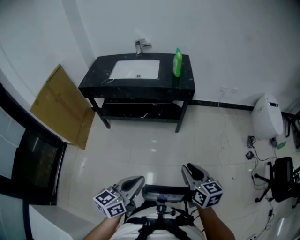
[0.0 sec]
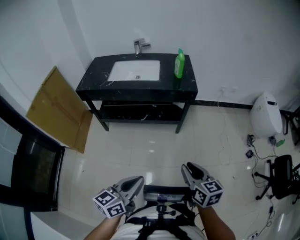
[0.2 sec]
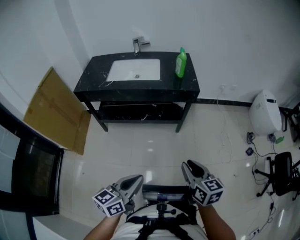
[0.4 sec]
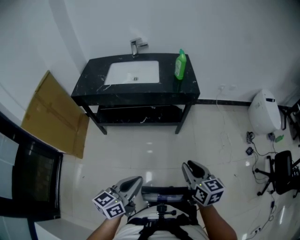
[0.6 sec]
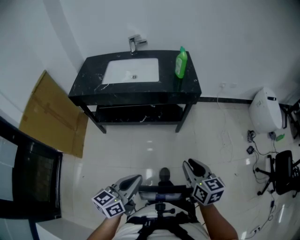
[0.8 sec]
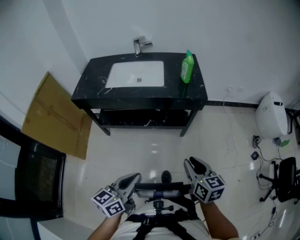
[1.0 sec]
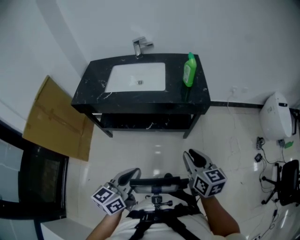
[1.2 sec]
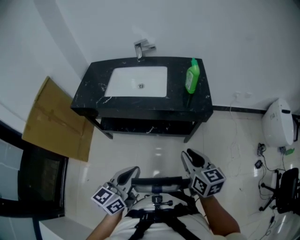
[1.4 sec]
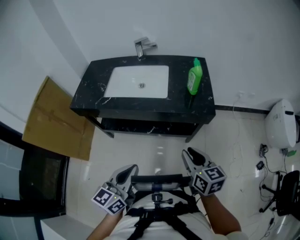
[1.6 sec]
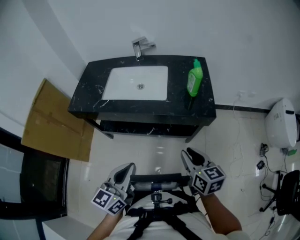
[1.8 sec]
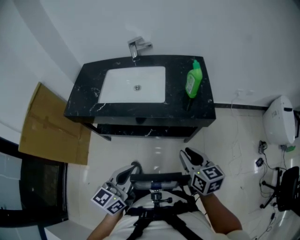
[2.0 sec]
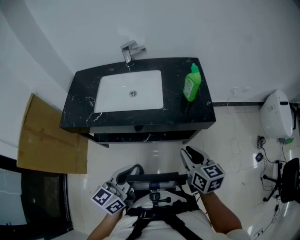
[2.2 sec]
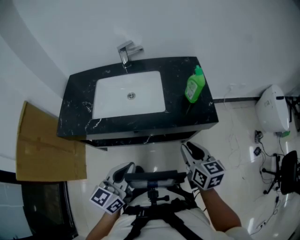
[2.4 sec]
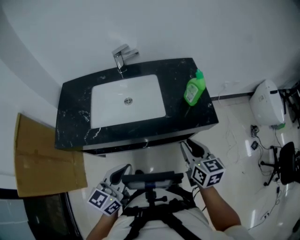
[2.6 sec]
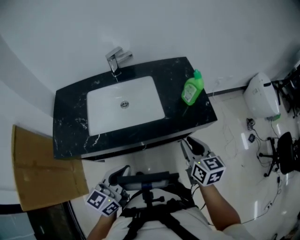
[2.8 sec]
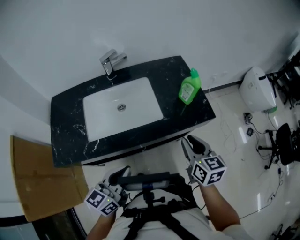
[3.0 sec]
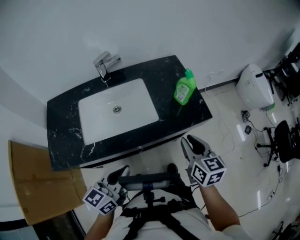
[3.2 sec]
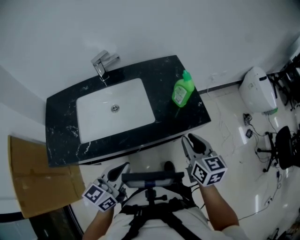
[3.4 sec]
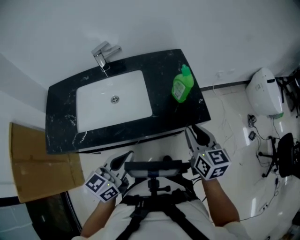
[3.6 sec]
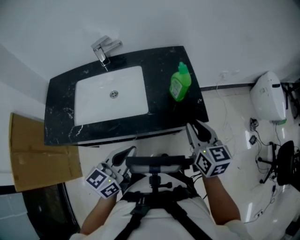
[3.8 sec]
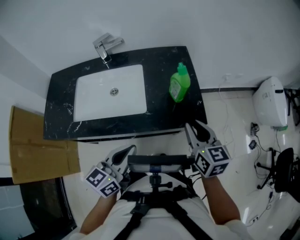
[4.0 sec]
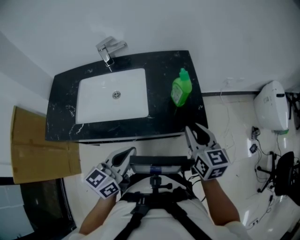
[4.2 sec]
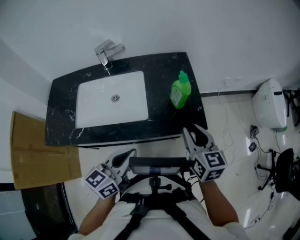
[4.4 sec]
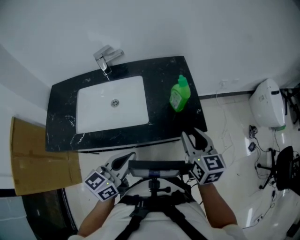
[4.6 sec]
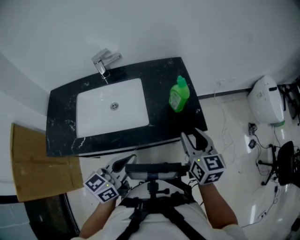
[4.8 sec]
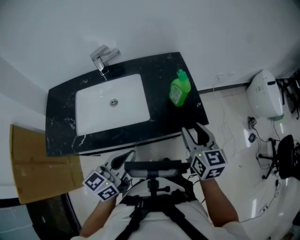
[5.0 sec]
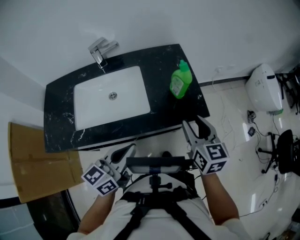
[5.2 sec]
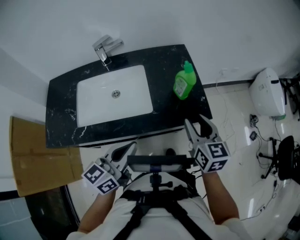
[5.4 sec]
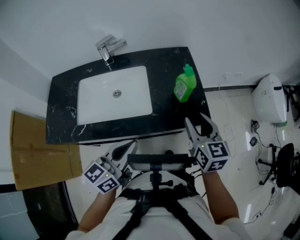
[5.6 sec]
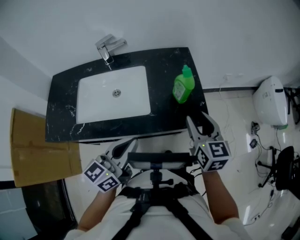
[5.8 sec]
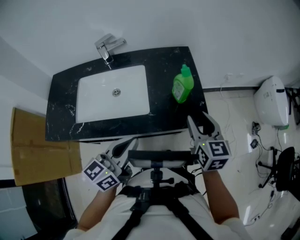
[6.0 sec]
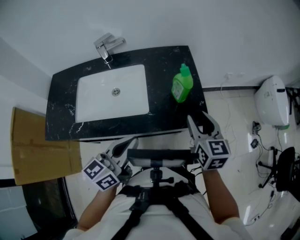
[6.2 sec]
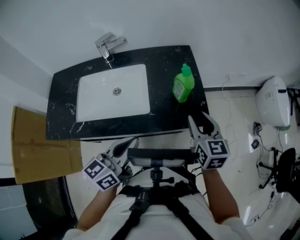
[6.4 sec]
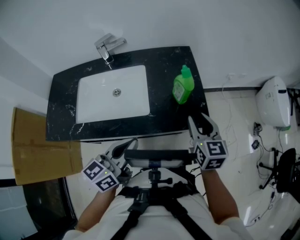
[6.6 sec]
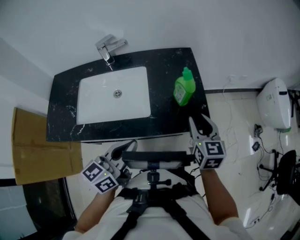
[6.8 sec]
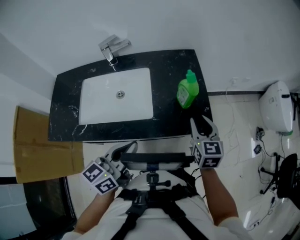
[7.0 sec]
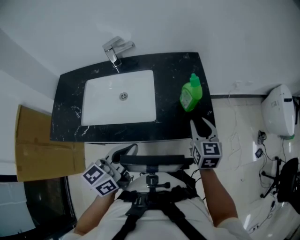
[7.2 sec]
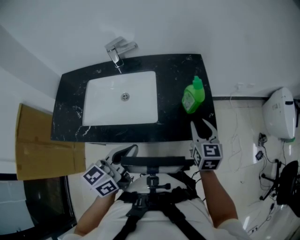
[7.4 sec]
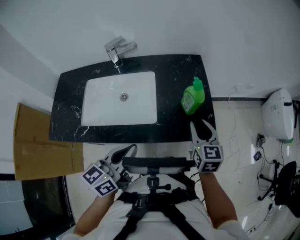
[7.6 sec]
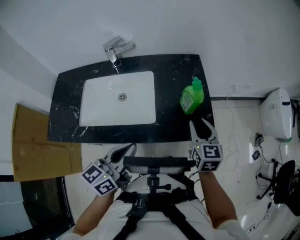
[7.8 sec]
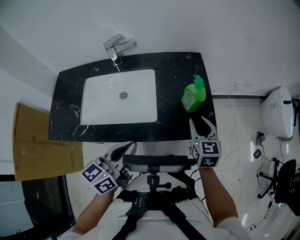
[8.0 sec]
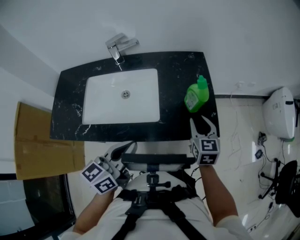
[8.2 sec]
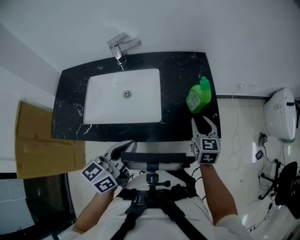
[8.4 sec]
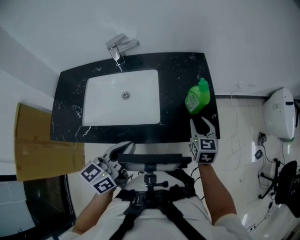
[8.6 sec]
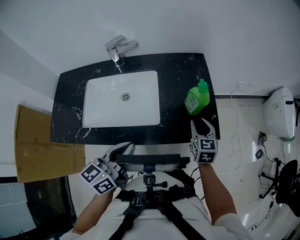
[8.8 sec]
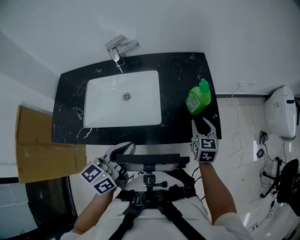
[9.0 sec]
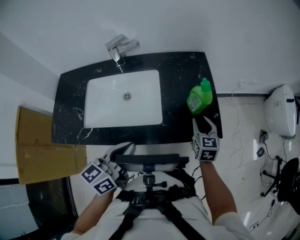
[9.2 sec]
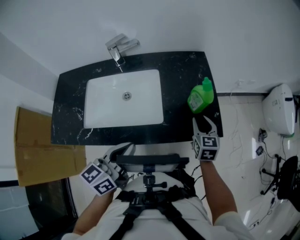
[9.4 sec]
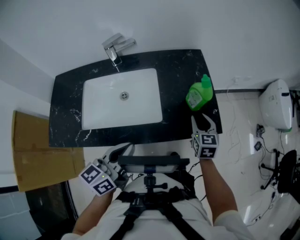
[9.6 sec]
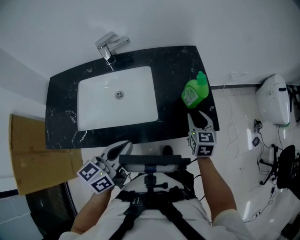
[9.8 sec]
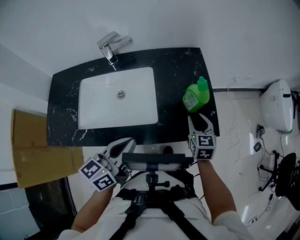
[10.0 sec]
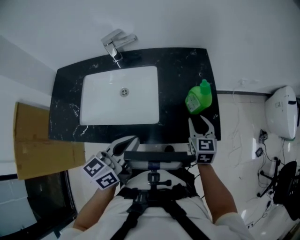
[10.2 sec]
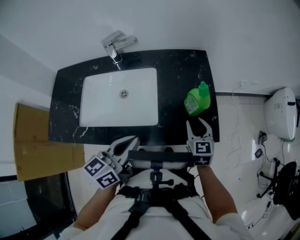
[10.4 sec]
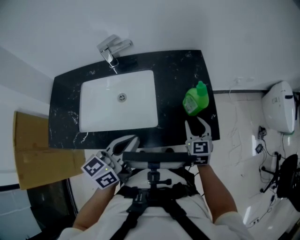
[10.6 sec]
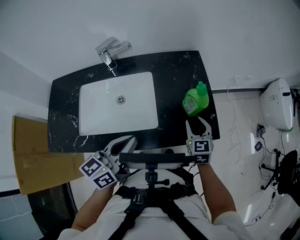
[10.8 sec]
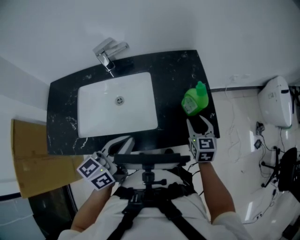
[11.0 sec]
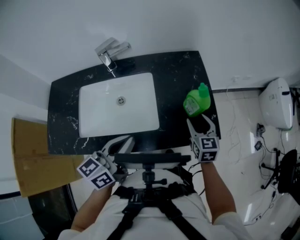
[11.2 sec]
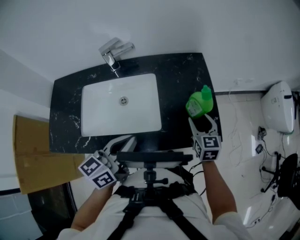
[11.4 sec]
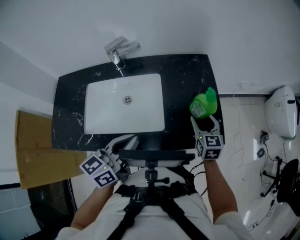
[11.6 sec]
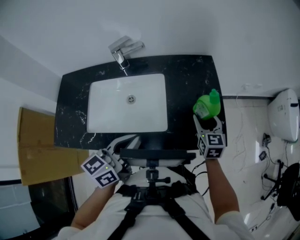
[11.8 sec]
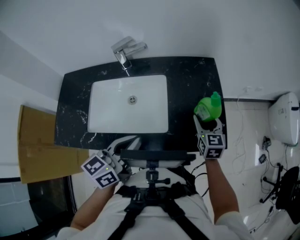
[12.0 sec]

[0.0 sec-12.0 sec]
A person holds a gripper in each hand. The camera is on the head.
0.0 sec to 1.6 sec: The two grippers go some 30 cm forward.
1.6 sec to 3.0 sec: The left gripper shifts by approximately 25 cm, and rotates approximately 30 degrees; the right gripper moves roughly 20 cm, and changes its angle by some 30 degrees.
3.0 sec to 4.4 sec: The right gripper moves forward and to the right, about 15 cm, while the left gripper moves to the right and forward, roughly 15 cm.
4.4 sec to 6.0 sec: The grippers move only a little.
6.0 sec to 7.6 sec: The right gripper travels downward by some 5 cm.
7.6 sec to 9.0 sec: The right gripper moves downward, about 10 cm.
9.0 sec to 10.4 sec: The grippers stay close to where they were, moving slightly.
10.4 sec to 12.0 sec: The right gripper is displaced forward by roughly 5 cm, and opens its fingers.

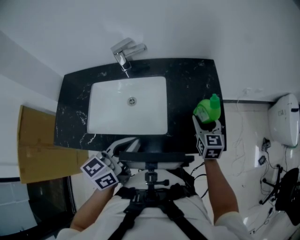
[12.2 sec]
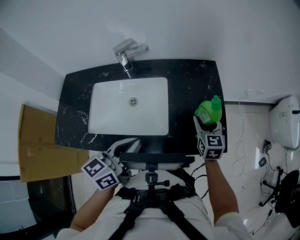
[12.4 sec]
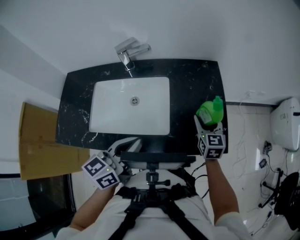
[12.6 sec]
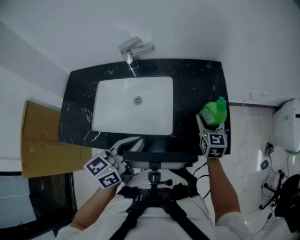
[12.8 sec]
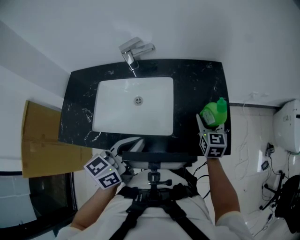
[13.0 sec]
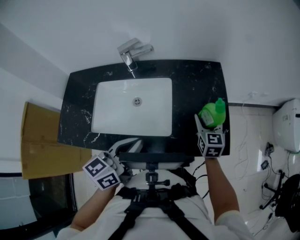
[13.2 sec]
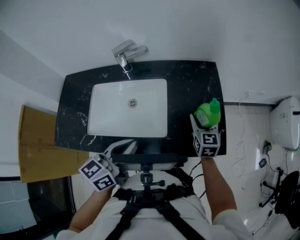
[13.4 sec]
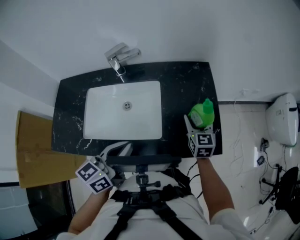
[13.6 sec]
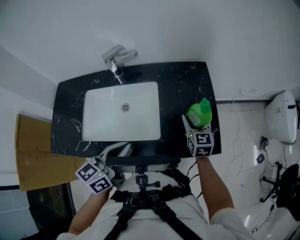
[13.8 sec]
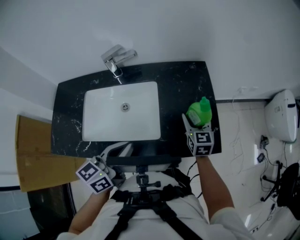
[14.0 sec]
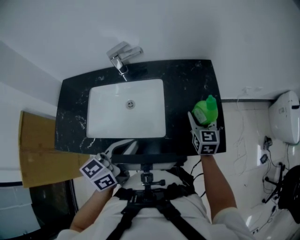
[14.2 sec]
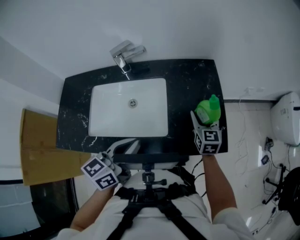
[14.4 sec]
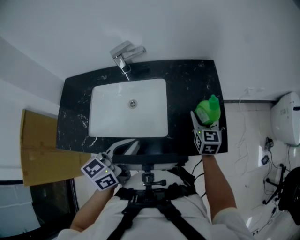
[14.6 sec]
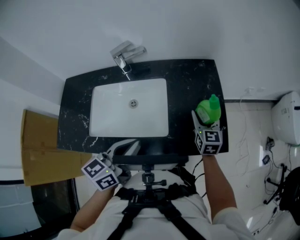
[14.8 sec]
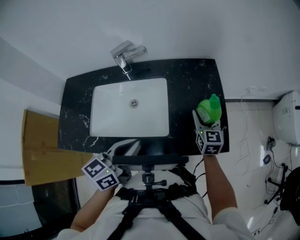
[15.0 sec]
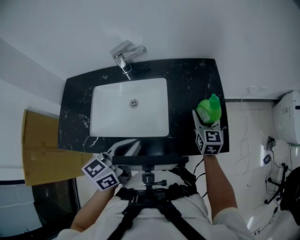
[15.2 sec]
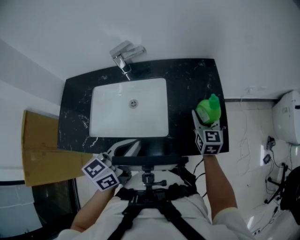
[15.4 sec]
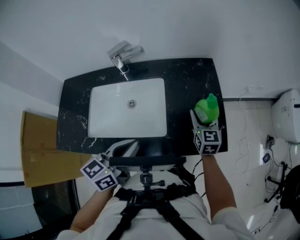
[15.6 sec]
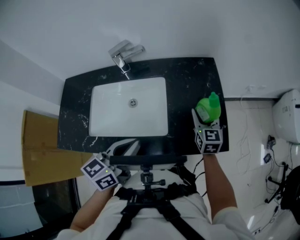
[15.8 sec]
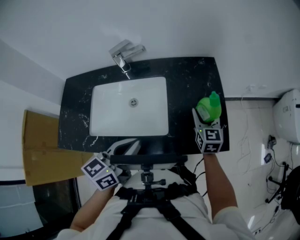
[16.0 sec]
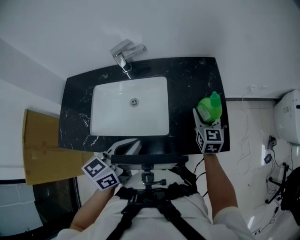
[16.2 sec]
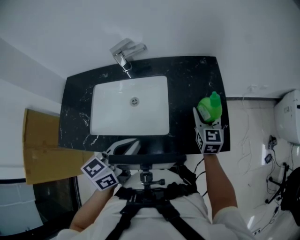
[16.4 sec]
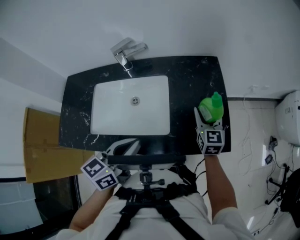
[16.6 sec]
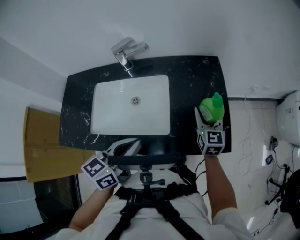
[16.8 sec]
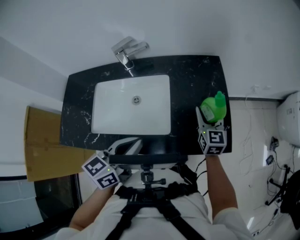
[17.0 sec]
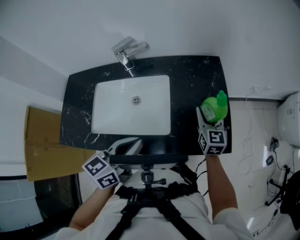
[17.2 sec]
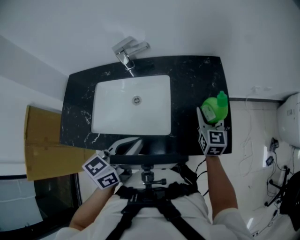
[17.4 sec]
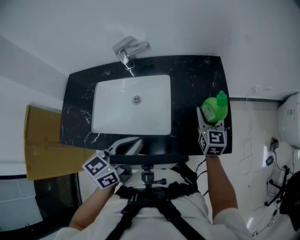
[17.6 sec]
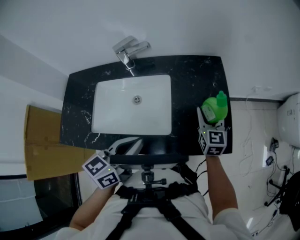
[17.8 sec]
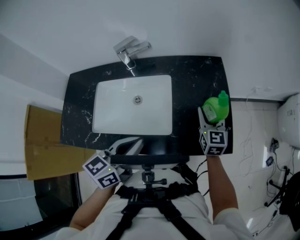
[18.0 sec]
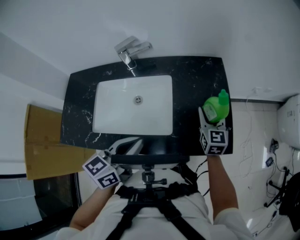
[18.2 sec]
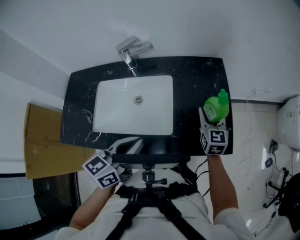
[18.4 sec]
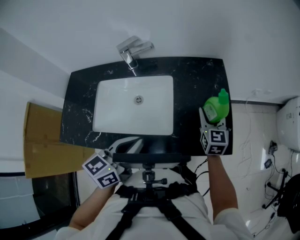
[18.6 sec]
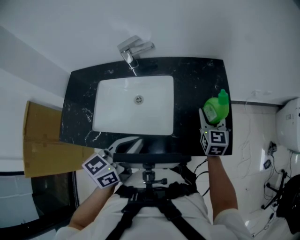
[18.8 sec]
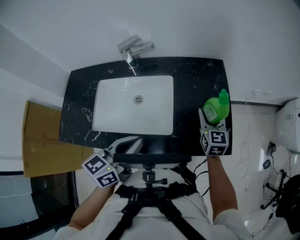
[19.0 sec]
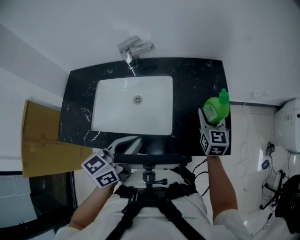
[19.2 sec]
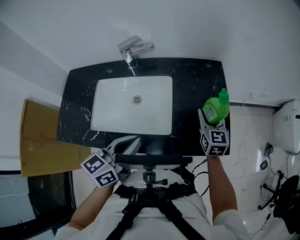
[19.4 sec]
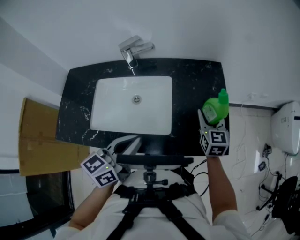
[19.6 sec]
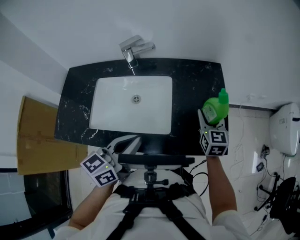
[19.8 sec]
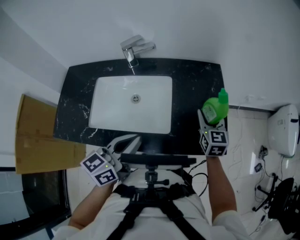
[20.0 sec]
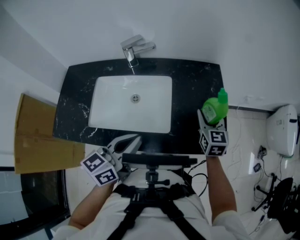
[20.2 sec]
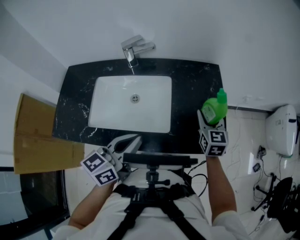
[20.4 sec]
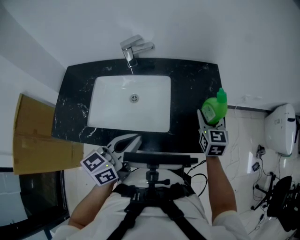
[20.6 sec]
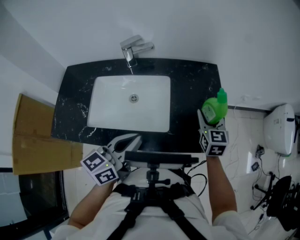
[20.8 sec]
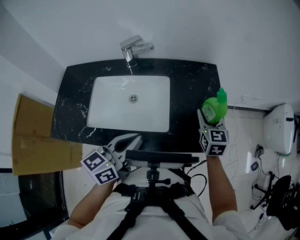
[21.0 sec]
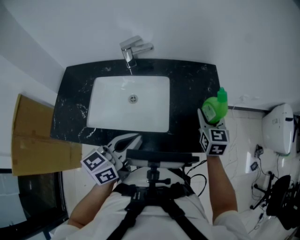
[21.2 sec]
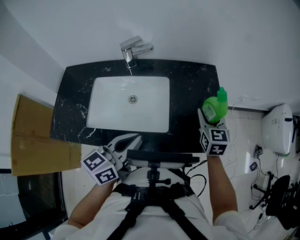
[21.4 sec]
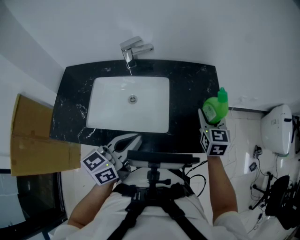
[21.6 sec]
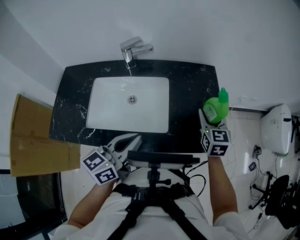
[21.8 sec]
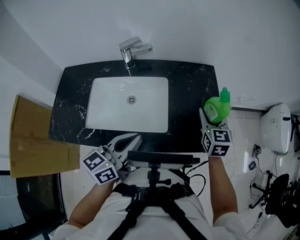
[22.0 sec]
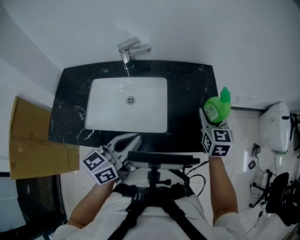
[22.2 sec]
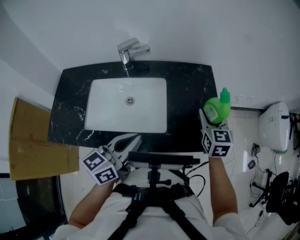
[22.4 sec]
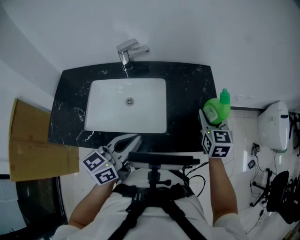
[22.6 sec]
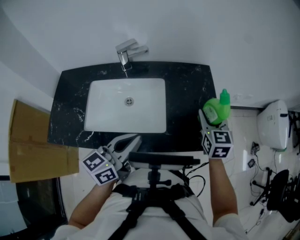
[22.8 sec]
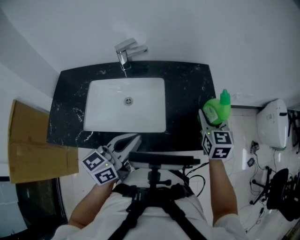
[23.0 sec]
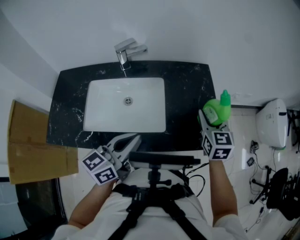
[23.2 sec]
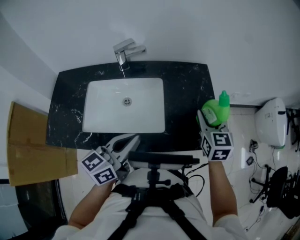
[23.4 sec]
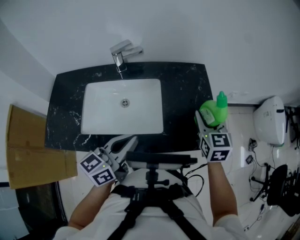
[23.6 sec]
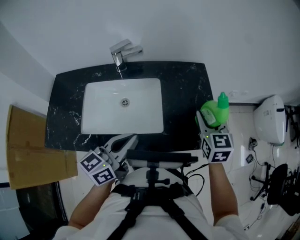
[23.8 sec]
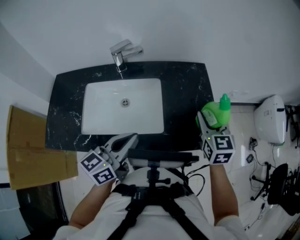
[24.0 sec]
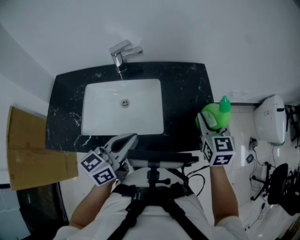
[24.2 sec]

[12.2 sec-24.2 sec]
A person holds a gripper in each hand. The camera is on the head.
12.2 sec to 13.8 sec: The grippers make only small movements.
13.8 sec to 15.2 sec: Both grippers stay about where they are.
15.2 sec to 18.2 sec: Both grippers stay put.
18.2 sec to 21.2 sec: There are only small adjustments of the grippers.
21.2 sec to 22.6 sec: The grippers stay close to where they were, moving slightly.
22.6 sec to 24.2 sec: The grippers make only small movements.
